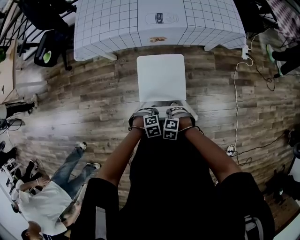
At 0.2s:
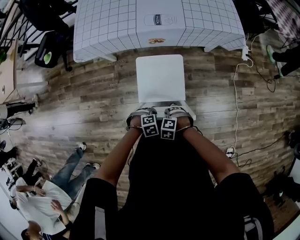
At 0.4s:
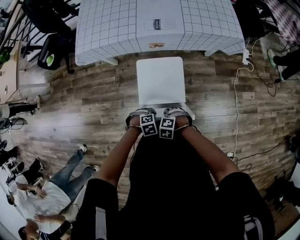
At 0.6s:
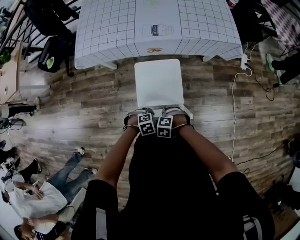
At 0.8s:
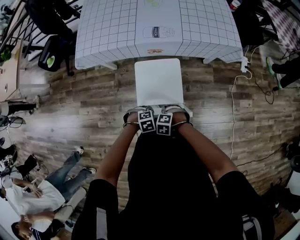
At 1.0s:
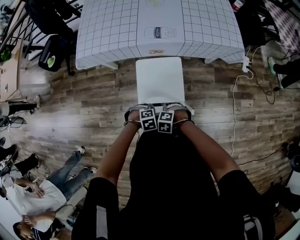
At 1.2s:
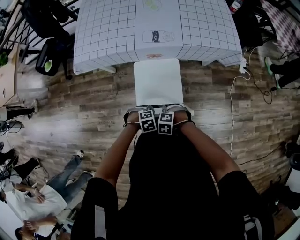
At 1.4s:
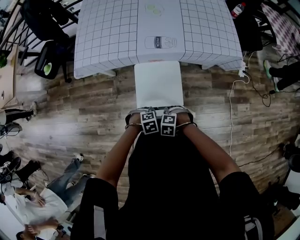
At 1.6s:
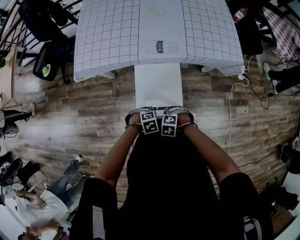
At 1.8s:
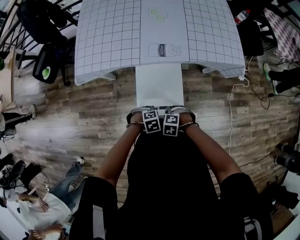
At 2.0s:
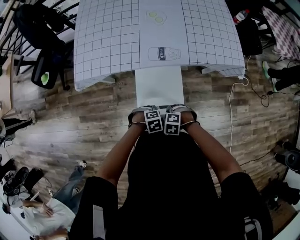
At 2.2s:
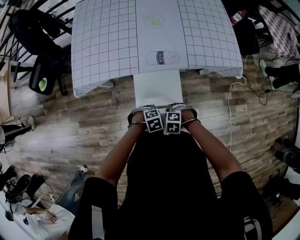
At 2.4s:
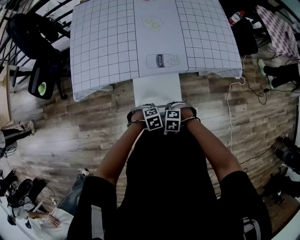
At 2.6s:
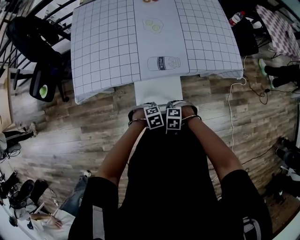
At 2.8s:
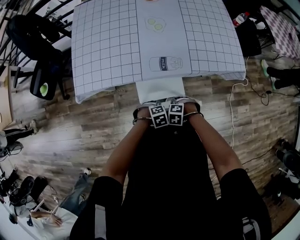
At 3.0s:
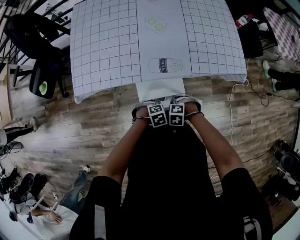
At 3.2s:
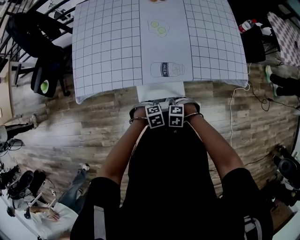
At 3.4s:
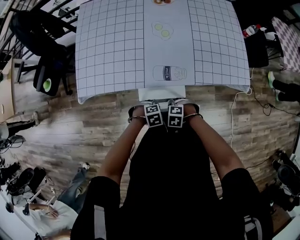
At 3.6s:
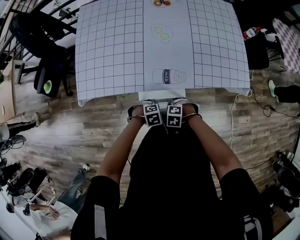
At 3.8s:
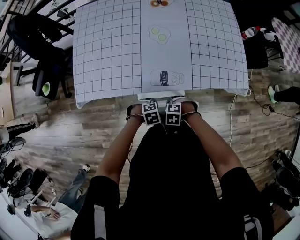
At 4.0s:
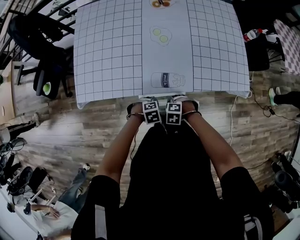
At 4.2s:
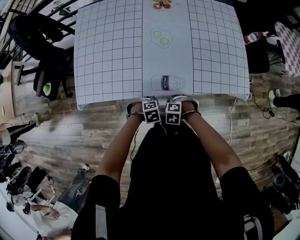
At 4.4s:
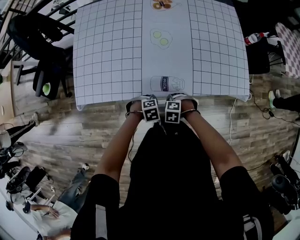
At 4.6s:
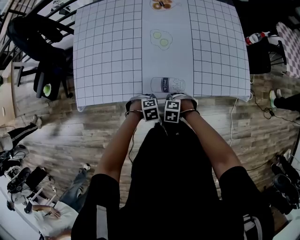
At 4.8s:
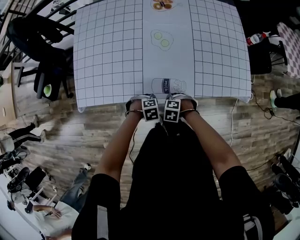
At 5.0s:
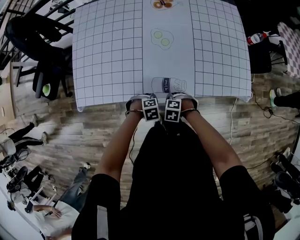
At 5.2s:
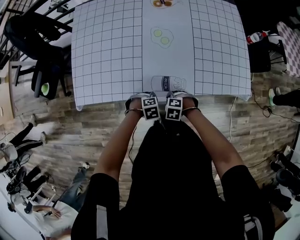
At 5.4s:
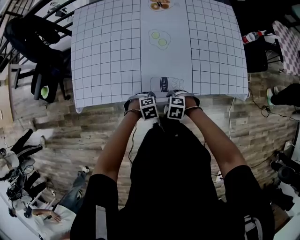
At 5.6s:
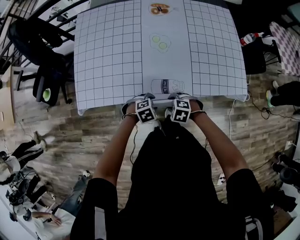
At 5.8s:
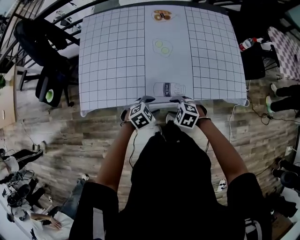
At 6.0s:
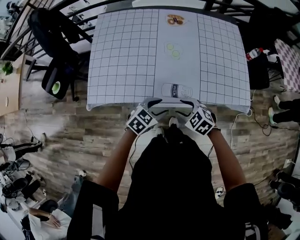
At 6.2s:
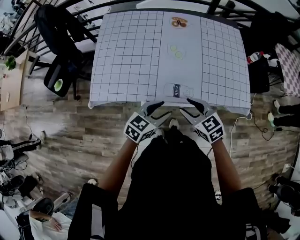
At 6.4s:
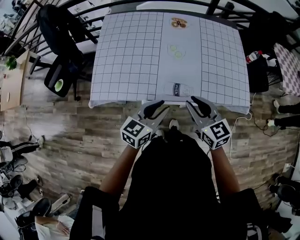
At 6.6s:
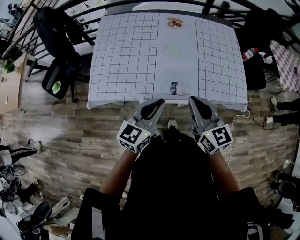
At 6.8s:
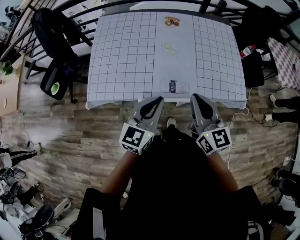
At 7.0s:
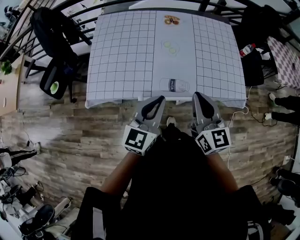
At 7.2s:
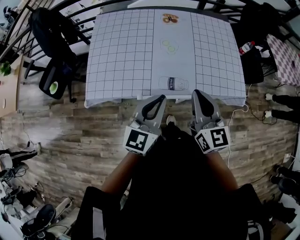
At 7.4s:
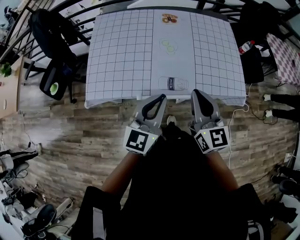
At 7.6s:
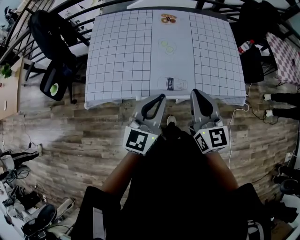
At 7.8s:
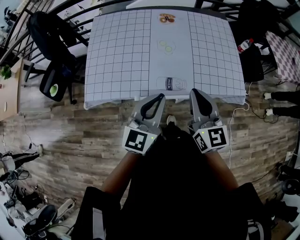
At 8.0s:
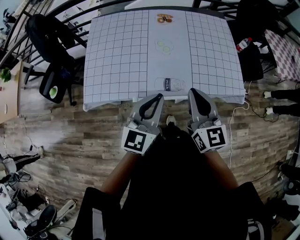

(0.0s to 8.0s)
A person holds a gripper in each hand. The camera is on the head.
0.0s - 1.6s: The left gripper ends up approximately 20 cm from where it was. The right gripper ends up some 20 cm from where it was.
1.6s - 3.2s: The right gripper shifts by some 20 cm; the left gripper shifts by some 20 cm.
3.2s - 4.8s: The left gripper shifts by roughly 15 cm, while the right gripper ends up approximately 15 cm from where it was.
4.8s - 6.4s: Both grippers move upward, roughly 30 cm. The left gripper points its fingers roughly 60 degrees further upward, and opens and closes again; the right gripper angles its fingers upward, by approximately 60 degrees, and opens and closes again.
6.4s - 8.0s: The grippers both shift upward by approximately 10 cm. The right gripper rotates some 20 degrees, and closes its fingers; the left gripper changes its angle by approximately 20 degrees, and closes.

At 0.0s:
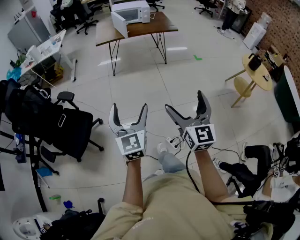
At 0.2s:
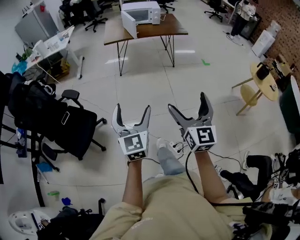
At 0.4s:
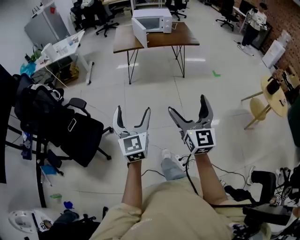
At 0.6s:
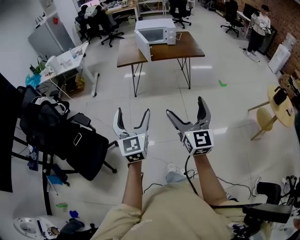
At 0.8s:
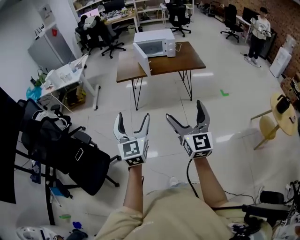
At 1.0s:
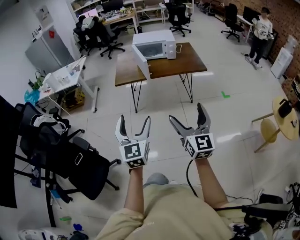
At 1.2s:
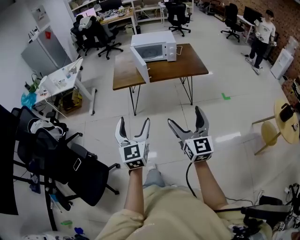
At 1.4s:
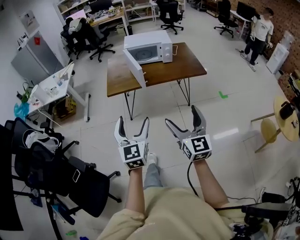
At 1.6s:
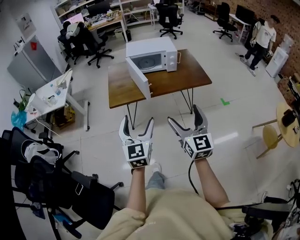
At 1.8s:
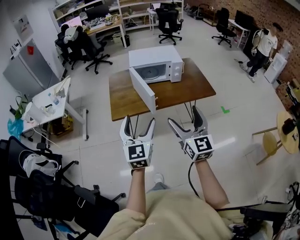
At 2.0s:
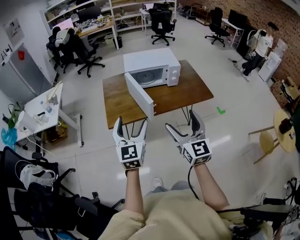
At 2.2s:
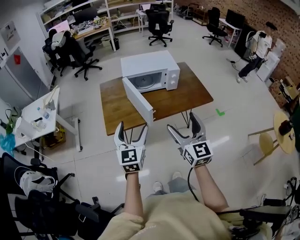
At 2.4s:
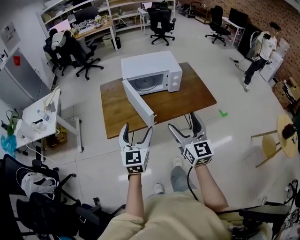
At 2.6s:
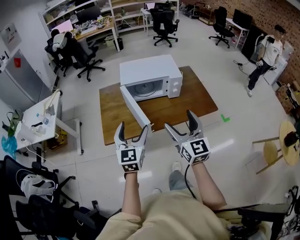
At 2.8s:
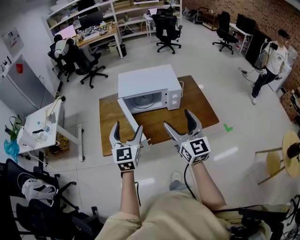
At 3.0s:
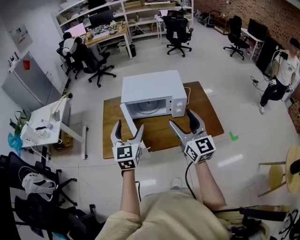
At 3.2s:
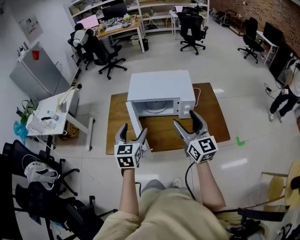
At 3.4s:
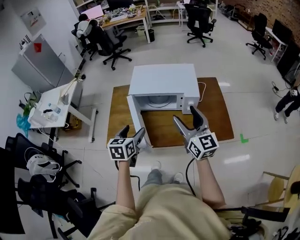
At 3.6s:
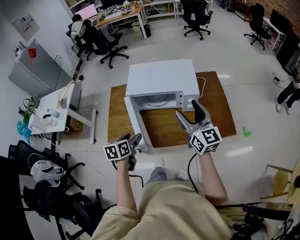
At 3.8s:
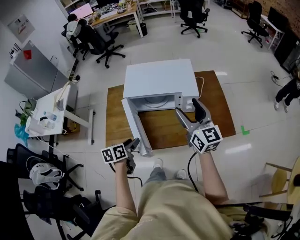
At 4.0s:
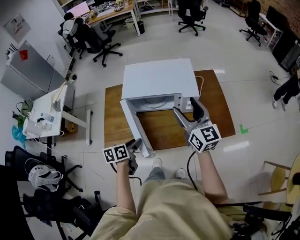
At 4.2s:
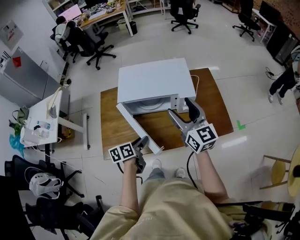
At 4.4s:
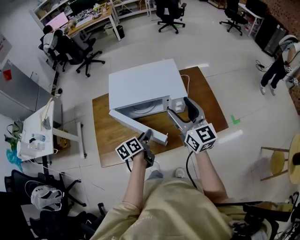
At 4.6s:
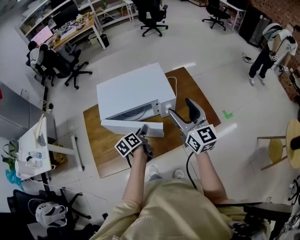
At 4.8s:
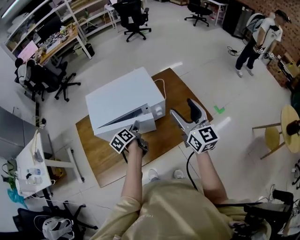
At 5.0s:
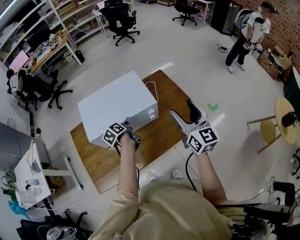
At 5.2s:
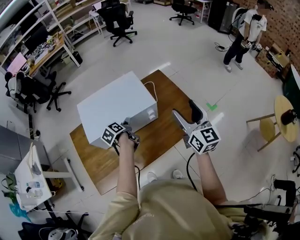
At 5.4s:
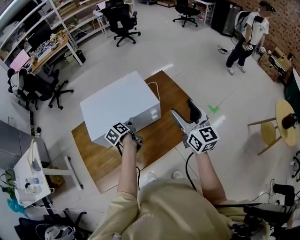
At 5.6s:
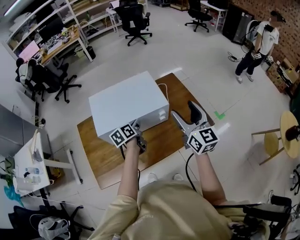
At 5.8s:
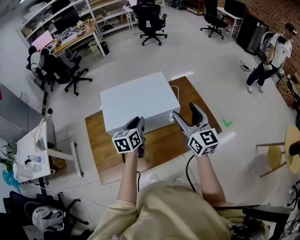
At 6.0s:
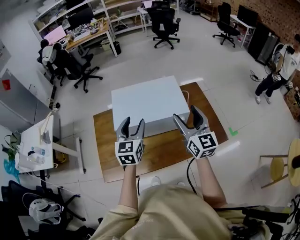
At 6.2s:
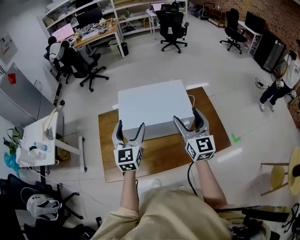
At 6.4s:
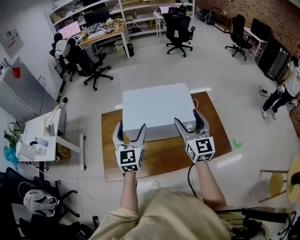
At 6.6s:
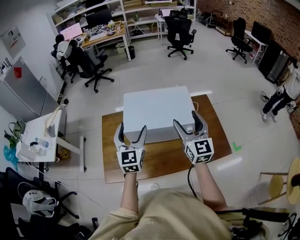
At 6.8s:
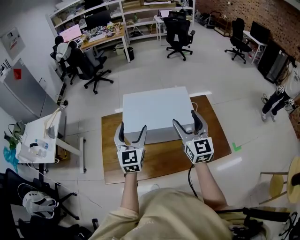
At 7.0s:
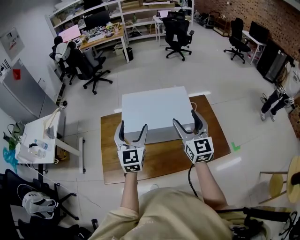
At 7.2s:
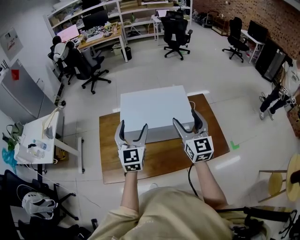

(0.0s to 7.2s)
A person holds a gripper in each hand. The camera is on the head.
0.0s - 1.4s: Both grippers are carried forward, about 50 cm.
1.4s - 2.8s: Both grippers are carried forward, approximately 50 cm.
2.8s - 4.4s: The left gripper heads forward, downward and to the right, covering about 35 cm, twists approximately 60 degrees counterclockwise, seen from behind, and closes its fingers, while the right gripper heads forward, covering about 30 cm.
4.4s - 5.8s: The right gripper goes approximately 5 cm to the right. The left gripper is displaced upward and forward by some 15 cm, and swivels about 30 degrees.
5.8s - 7.2s: The right gripper heads to the left, covering approximately 5 cm; the left gripper shifts about 15 cm upward and to the left, changes its angle by about 50 degrees, and opens up.

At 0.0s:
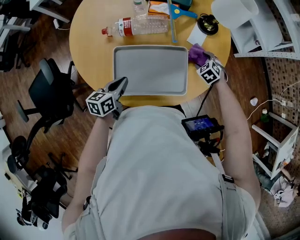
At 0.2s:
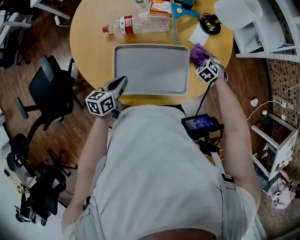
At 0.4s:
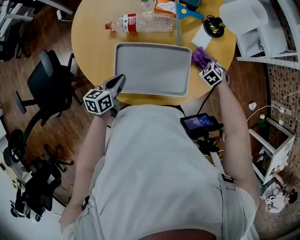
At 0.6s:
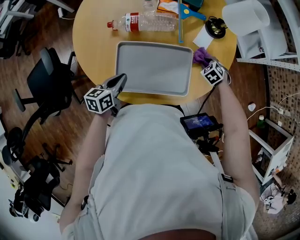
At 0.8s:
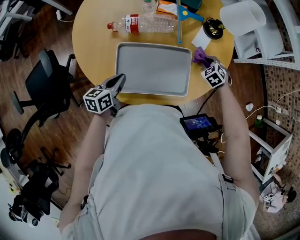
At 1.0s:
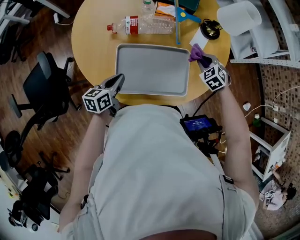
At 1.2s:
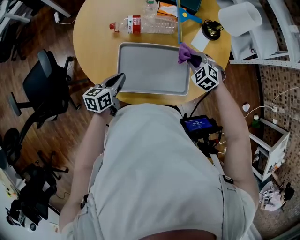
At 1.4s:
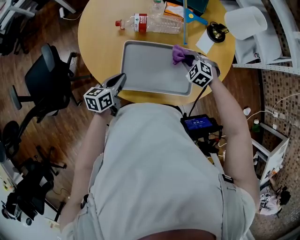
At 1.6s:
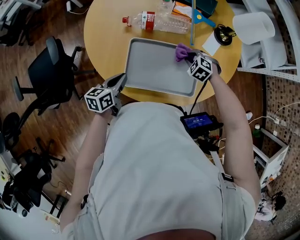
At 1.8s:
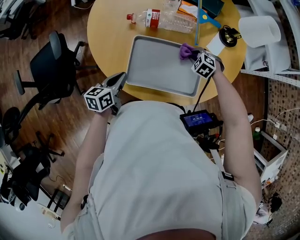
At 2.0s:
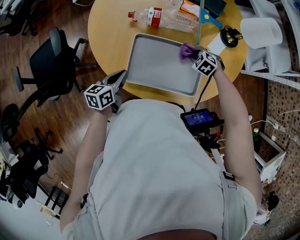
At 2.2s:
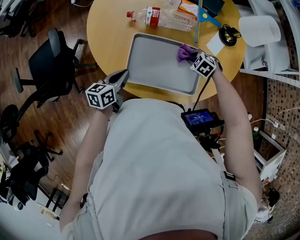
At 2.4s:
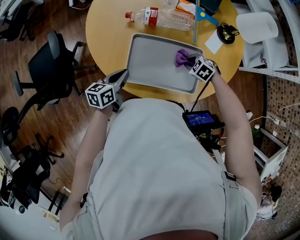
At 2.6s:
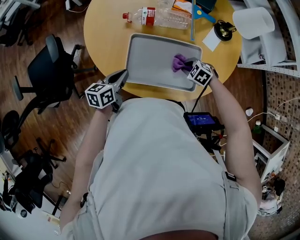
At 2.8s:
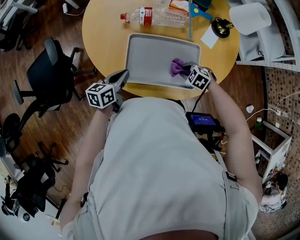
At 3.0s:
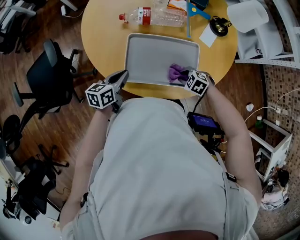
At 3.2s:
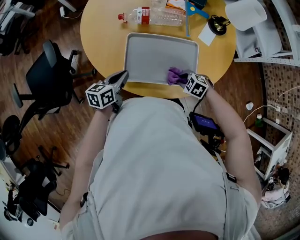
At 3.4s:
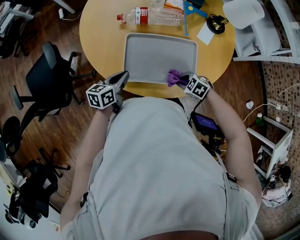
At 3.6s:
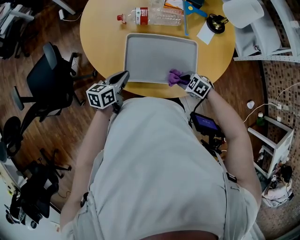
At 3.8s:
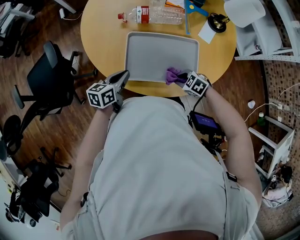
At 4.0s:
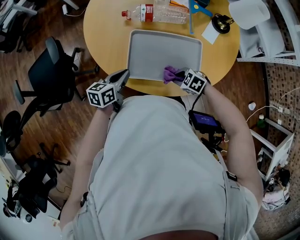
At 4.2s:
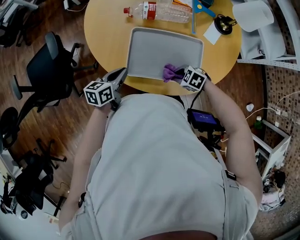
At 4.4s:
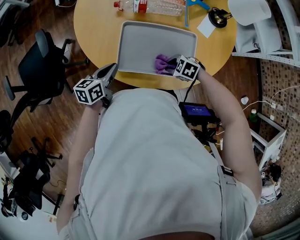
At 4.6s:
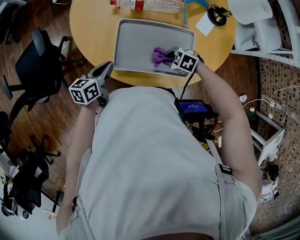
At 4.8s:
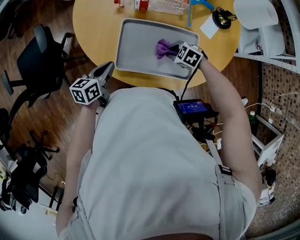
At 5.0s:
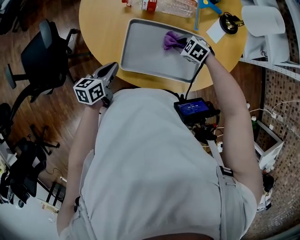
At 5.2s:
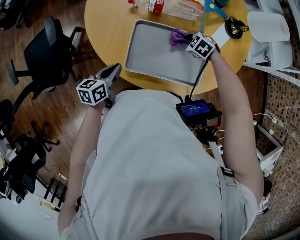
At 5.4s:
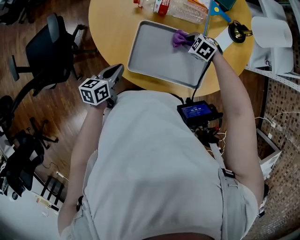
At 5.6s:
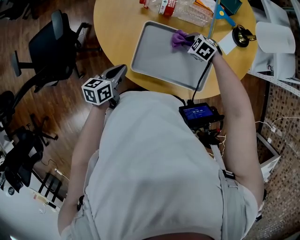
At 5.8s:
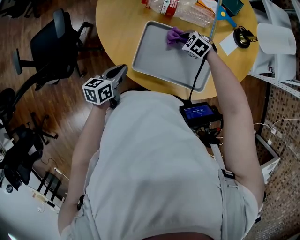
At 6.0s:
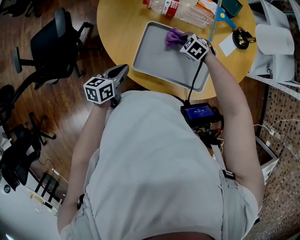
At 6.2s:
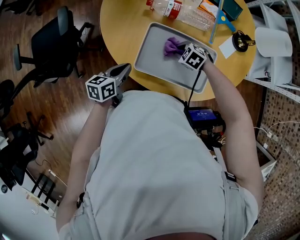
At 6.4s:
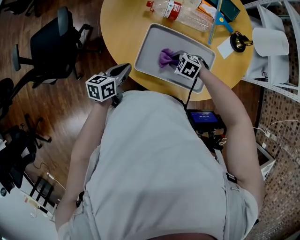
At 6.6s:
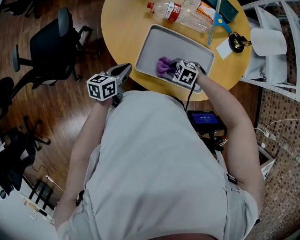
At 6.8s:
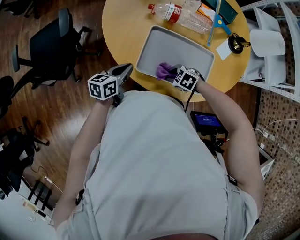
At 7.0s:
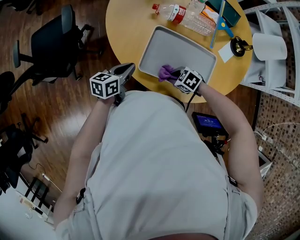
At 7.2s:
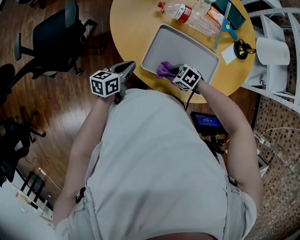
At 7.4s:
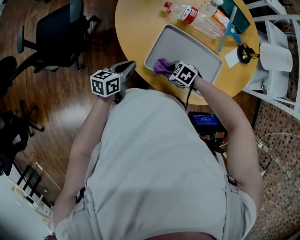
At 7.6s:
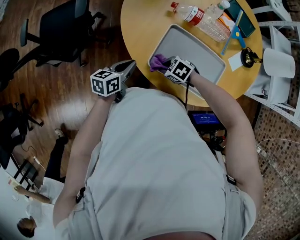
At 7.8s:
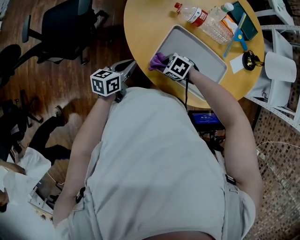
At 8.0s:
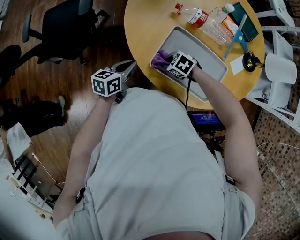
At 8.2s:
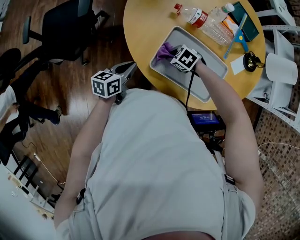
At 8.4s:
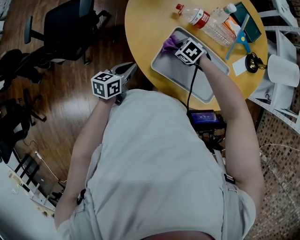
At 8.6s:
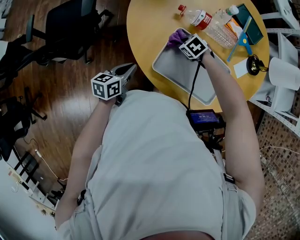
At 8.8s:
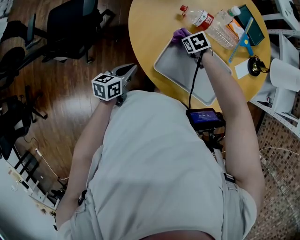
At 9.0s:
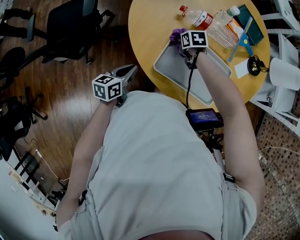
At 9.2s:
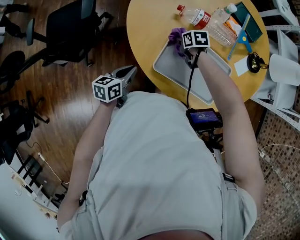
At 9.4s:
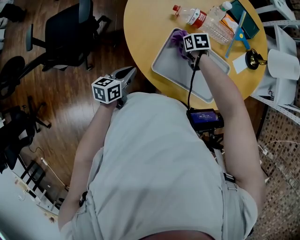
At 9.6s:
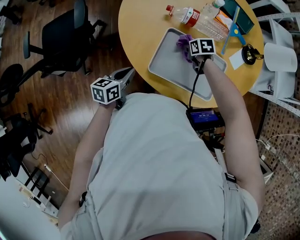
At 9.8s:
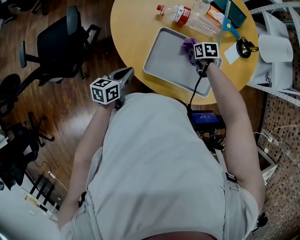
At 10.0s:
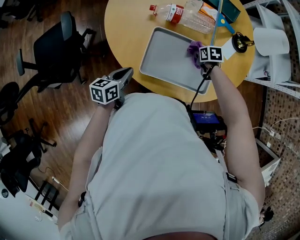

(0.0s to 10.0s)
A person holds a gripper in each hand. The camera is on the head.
0.0s - 1.4s: The right gripper heads to the left, covering roughly 15 cm, swivels roughly 30 degrees, and closes up; the left gripper ends up about 5 cm from where it was.
1.4s - 2.8s: The right gripper shifts roughly 10 cm backward.
2.8s - 4.2s: The right gripper shifts by about 10 cm.
4.2s - 5.8s: The right gripper shifts by some 20 cm.
5.8s - 7.2s: The right gripper moves about 20 cm.
7.2s - 8.6s: The right gripper moves approximately 20 cm.
8.6s - 10.0s: The right gripper changes place by some 20 cm, and rotates around the line of its fingers by approximately 50 degrees, clockwise from behind.
